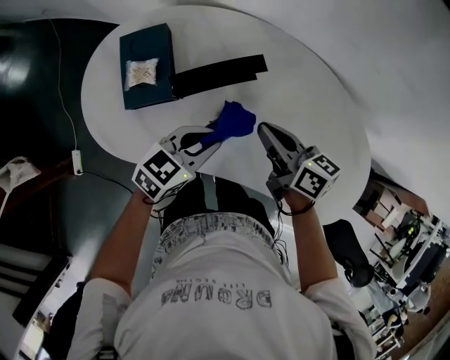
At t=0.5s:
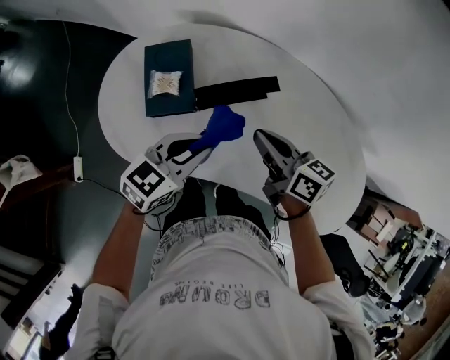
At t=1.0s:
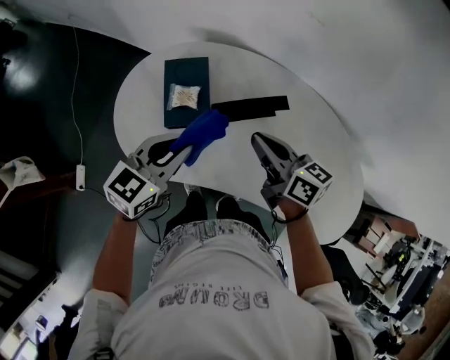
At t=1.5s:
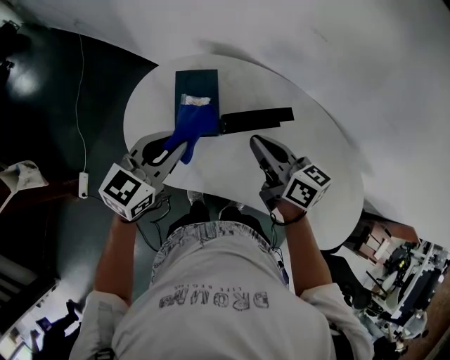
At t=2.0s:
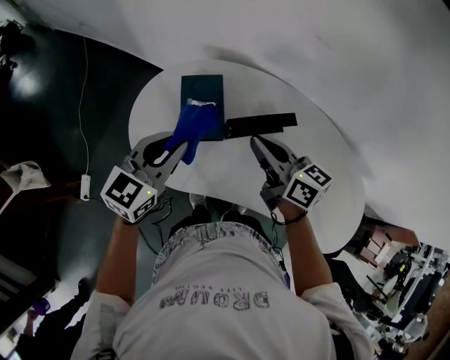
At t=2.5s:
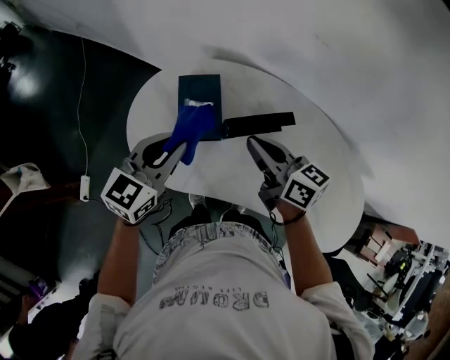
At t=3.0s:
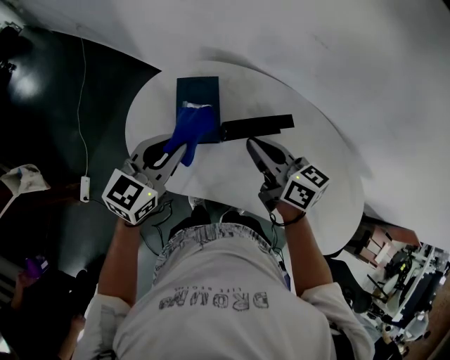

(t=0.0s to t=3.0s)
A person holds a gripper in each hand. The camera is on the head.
t=0.0s - t=1.5s: Both grippers move to the left and upward, approximately 20 cm. The left gripper changes its angle by about 30 degrees.
t=1.5s - t=3.0s: The grippers move only a little.

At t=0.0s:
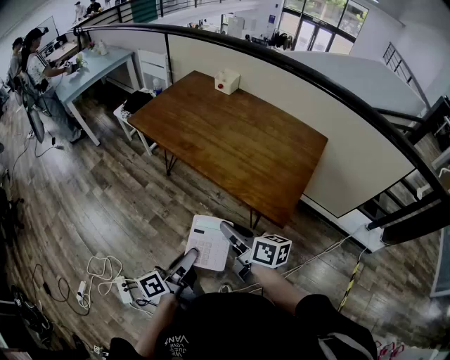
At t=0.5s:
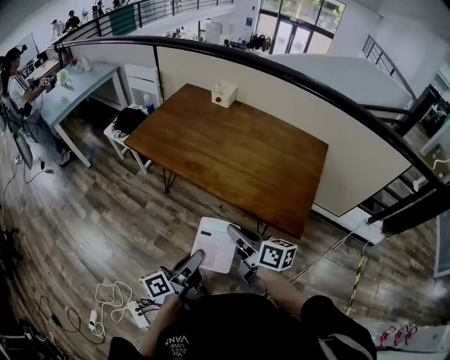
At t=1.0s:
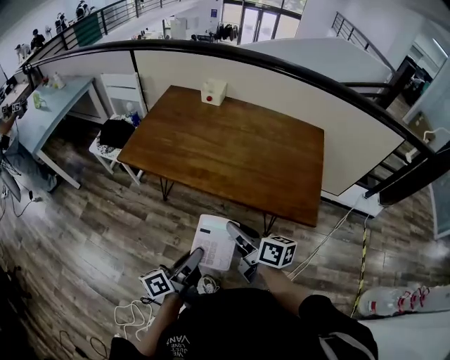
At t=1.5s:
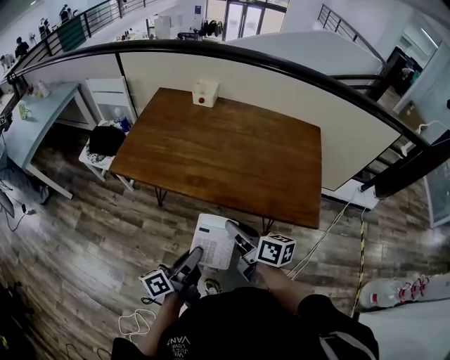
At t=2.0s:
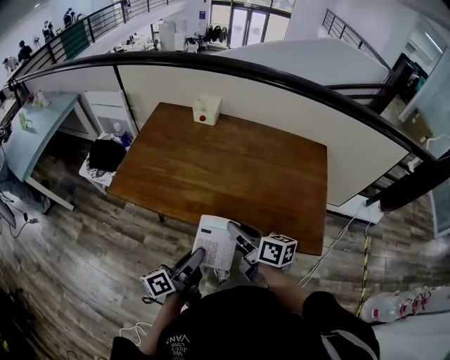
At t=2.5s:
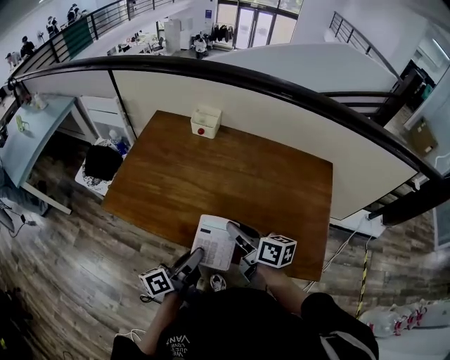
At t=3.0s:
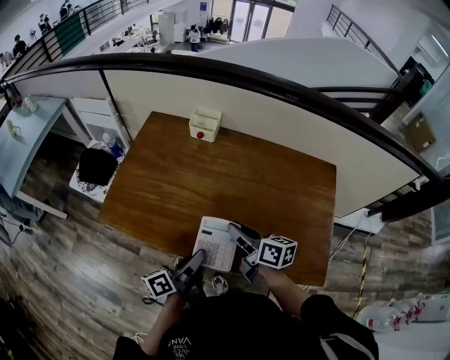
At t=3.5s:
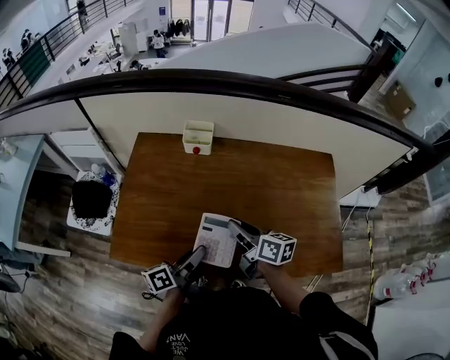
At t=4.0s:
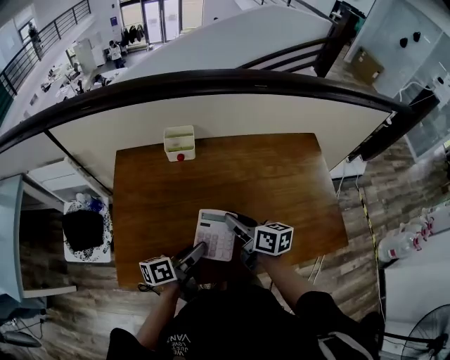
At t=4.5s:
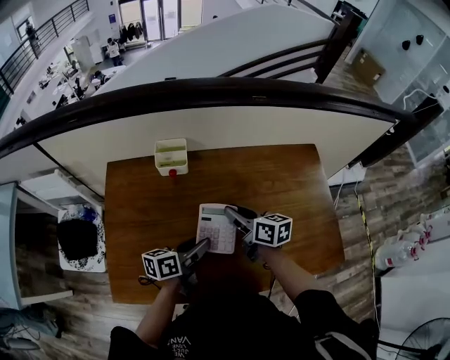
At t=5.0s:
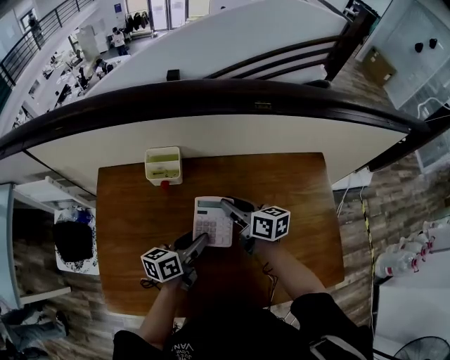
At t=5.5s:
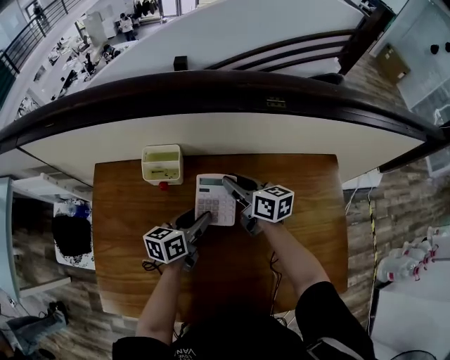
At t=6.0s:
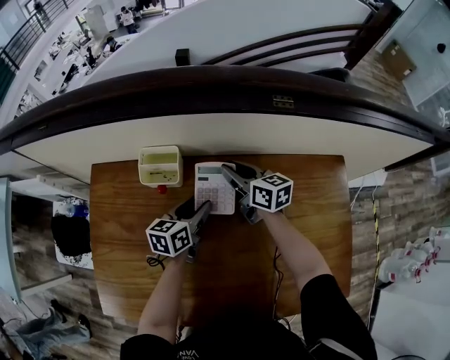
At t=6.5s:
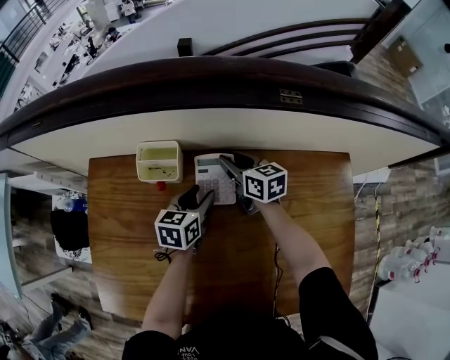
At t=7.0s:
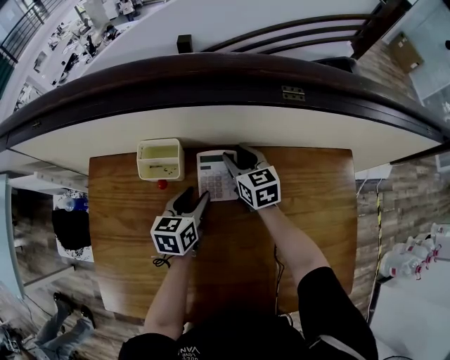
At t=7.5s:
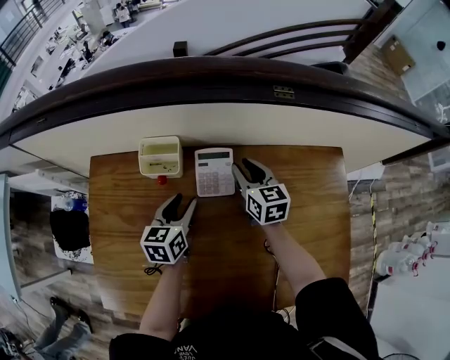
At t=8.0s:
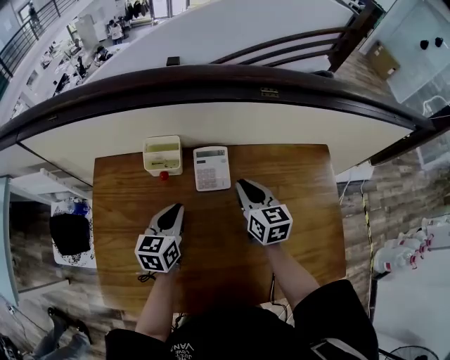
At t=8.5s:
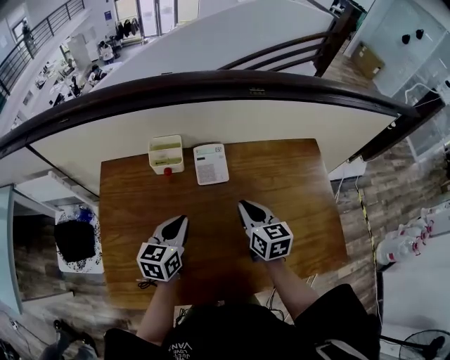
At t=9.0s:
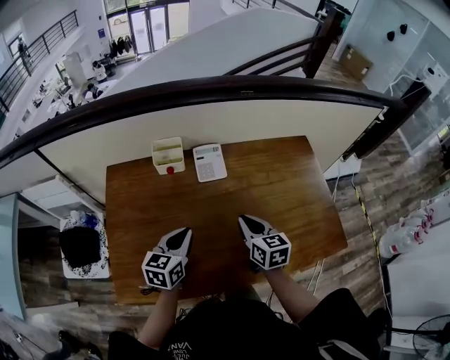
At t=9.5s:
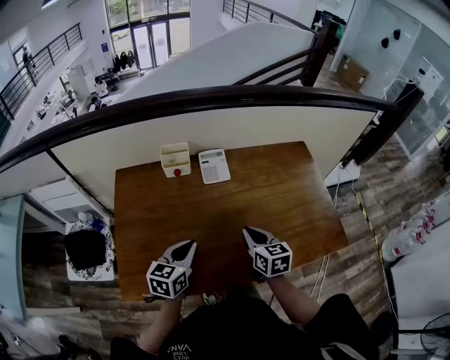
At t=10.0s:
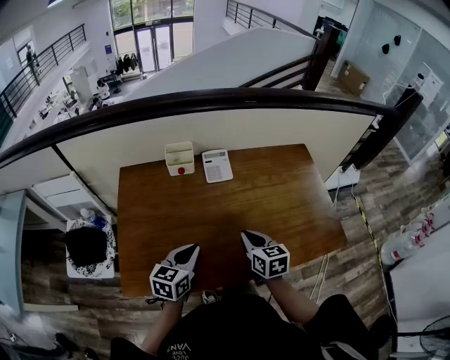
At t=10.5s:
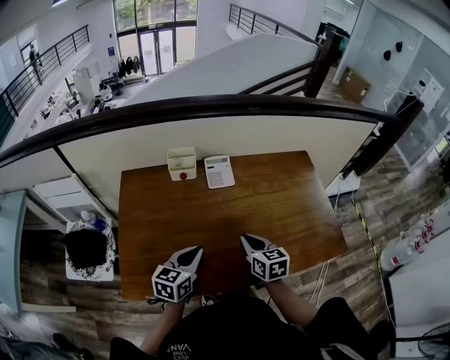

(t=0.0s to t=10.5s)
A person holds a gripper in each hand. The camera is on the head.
t=0.0s - t=2.0s: The grippers both shift forward and to the left by approximately 30 cm. The left gripper rotates about 20 degrees.
t=2.0s - t=4.0s: The right gripper ends up about 25 cm from where it was, and swivels about 20 degrees. Meanwhile the left gripper ends up roughly 30 cm from where it was, and changes its angle by about 30 degrees.
t=4.0s - t=6.5s: The grippers both shift forward by some 35 cm. The right gripper changes its angle by some 20 degrees, while the left gripper rotates about 40 degrees, and opens.
t=6.5s - t=8.5s: The right gripper shifts about 25 cm backward, and rotates about 20 degrees. The left gripper goes about 20 cm backward, upward and to the left, and closes up.
t=8.5s - t=10.5s: The two grippers go about 15 cm backward.

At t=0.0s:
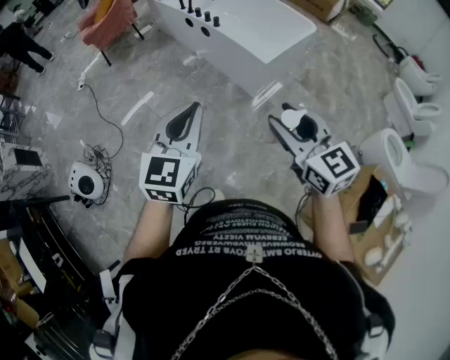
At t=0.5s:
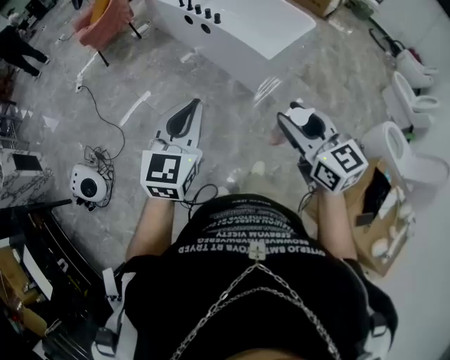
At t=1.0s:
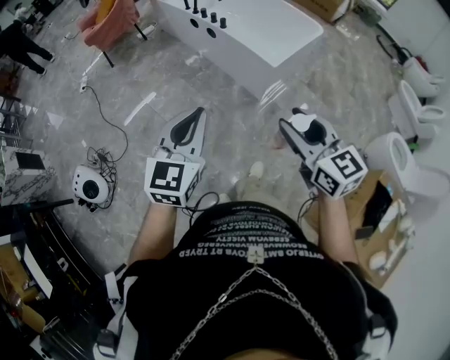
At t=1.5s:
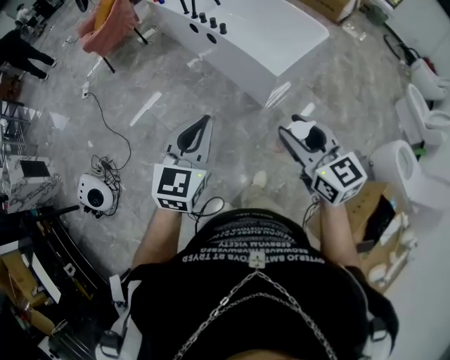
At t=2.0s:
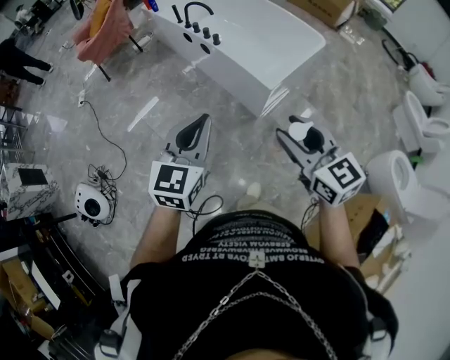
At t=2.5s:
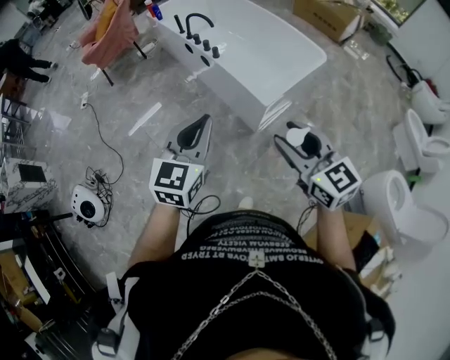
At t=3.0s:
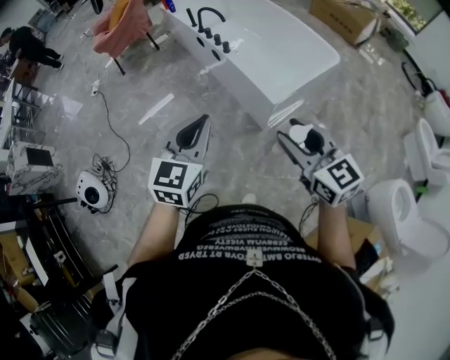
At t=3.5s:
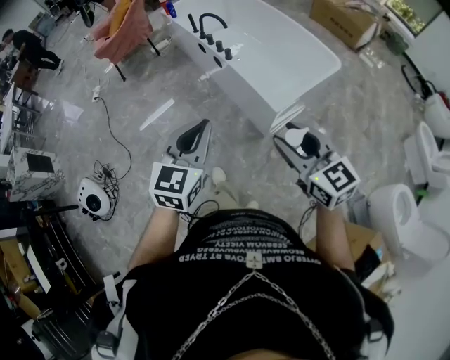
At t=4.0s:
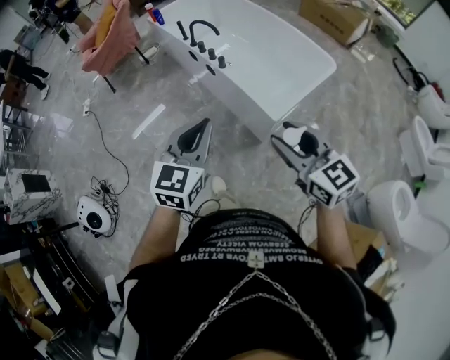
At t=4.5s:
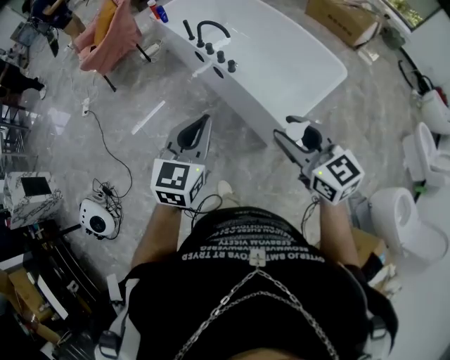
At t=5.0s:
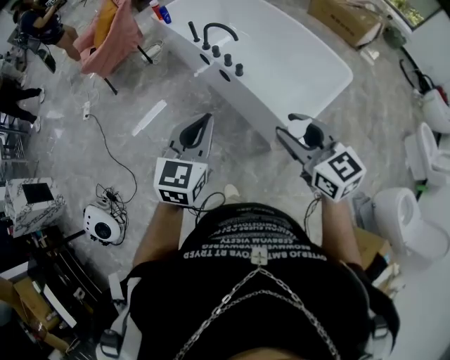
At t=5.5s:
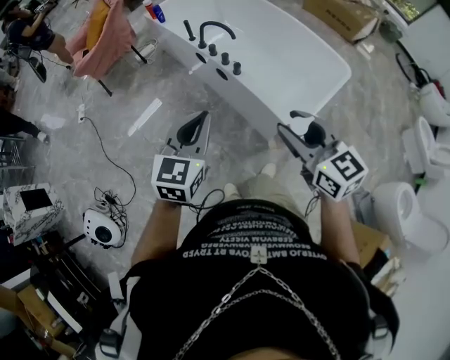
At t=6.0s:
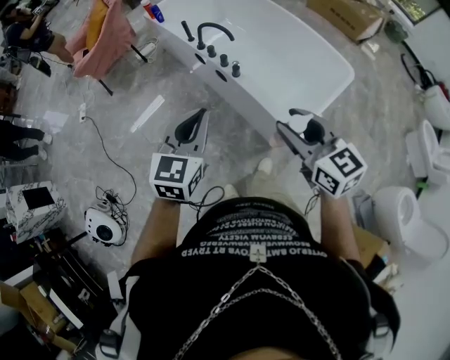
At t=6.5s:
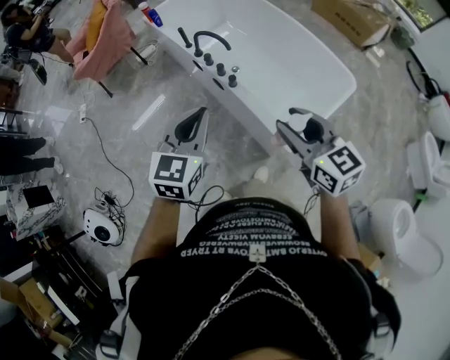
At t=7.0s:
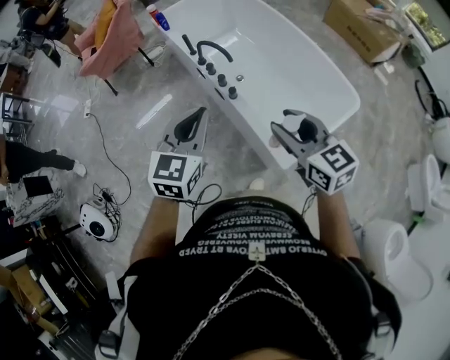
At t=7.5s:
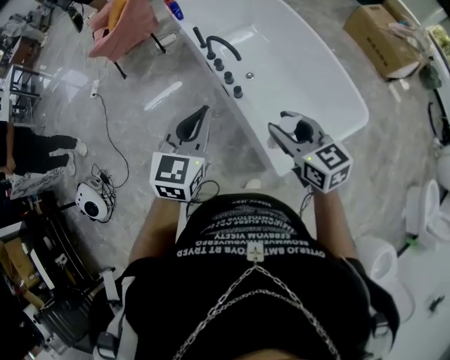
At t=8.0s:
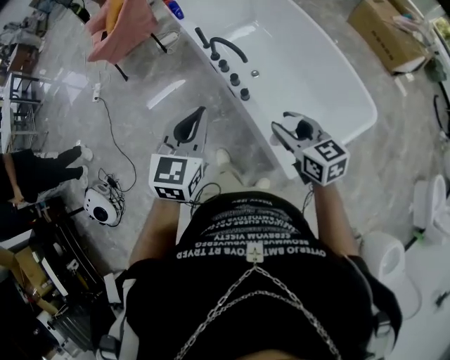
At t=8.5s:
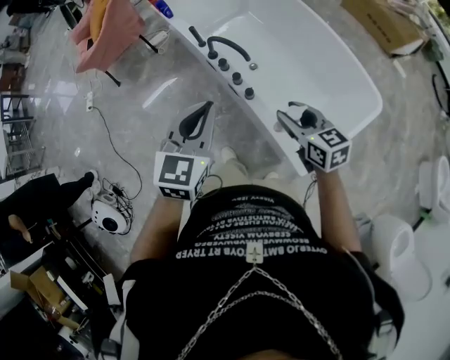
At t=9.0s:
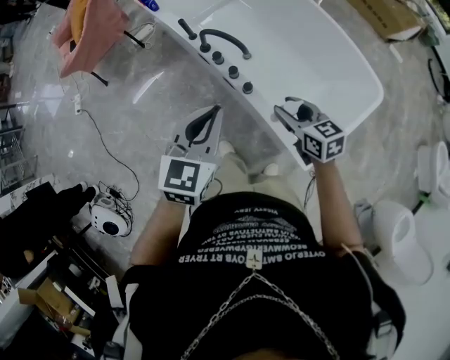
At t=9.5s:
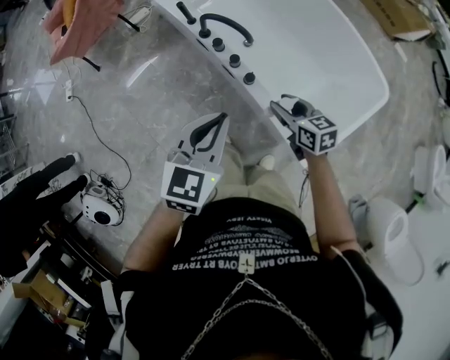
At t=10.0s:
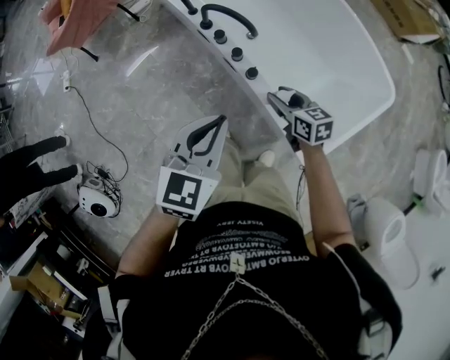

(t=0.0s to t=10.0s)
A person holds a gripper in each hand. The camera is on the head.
t=0.0s - t=2.0s: Both grippers travel together forward, approximately 20 cm.
t=2.0s - t=4.0s: The grippers both shift forward by approximately 15 cm.
t=4.0s - t=6.0s: The grippers both shift forward by some 20 cm.
t=6.0s - t=8.0s: The right gripper travels forward, downward and to the right by some 25 cm. Meanwhile the left gripper goes approximately 20 cm forward and to the right.
t=8.0s - t=10.0s: The left gripper heads downward and forward, covering about 15 cm. The right gripper moves downward and forward, about 25 cm, and rotates some 20 degrees.

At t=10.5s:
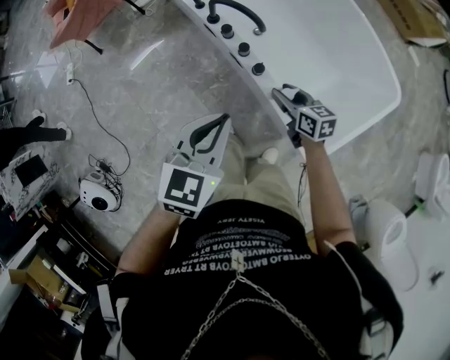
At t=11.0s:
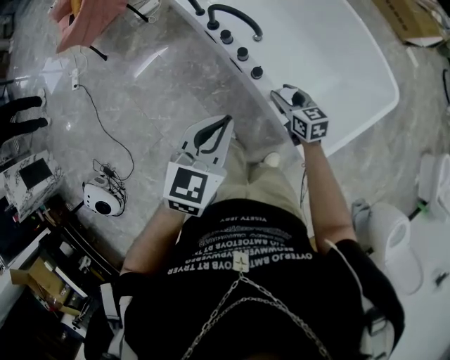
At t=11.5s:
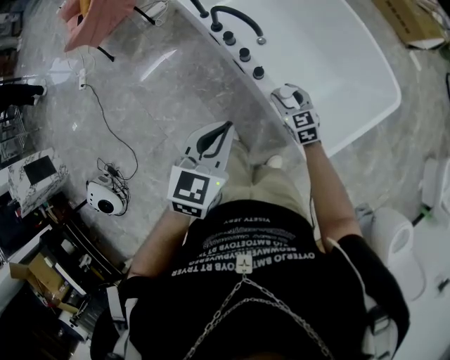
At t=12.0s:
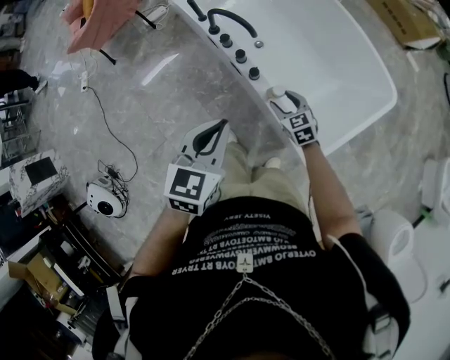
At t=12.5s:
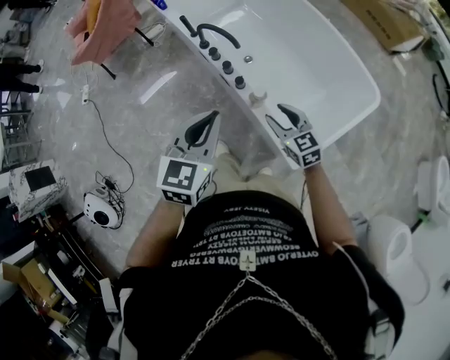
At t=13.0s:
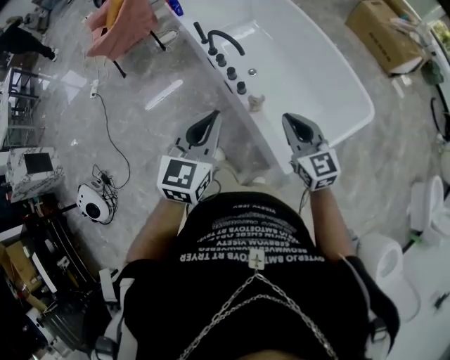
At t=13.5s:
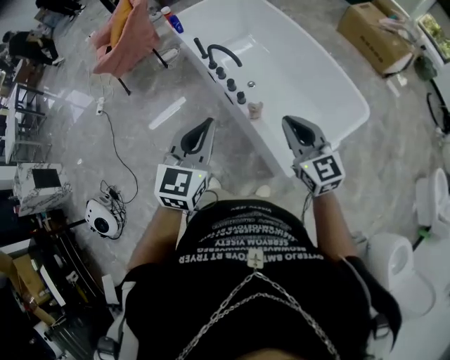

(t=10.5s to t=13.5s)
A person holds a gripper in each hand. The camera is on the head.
t=10.5s - t=12.0s: The right gripper ends up roughly 5 cm from where it was, and changes its angle by approximately 30 degrees; the left gripper shifts by some 5 cm.
t=12.0s - t=13.5s: The left gripper is displaced upward and backward by some 15 cm. The right gripper travels upward by roughly 35 cm, angles its fingers upward, by about 30 degrees, and closes.
